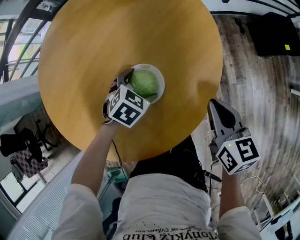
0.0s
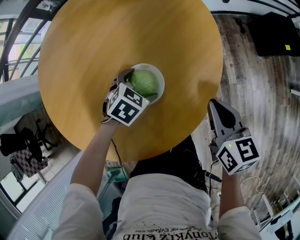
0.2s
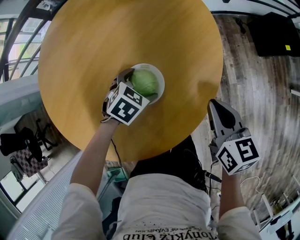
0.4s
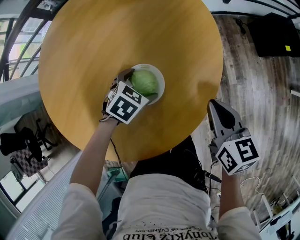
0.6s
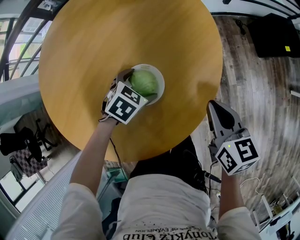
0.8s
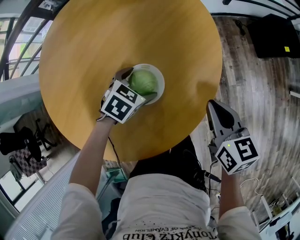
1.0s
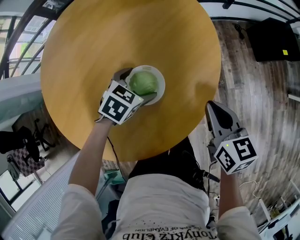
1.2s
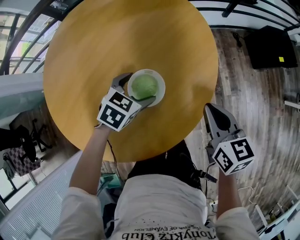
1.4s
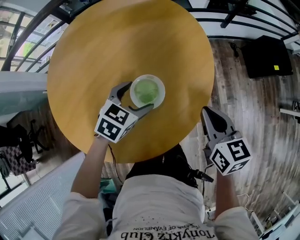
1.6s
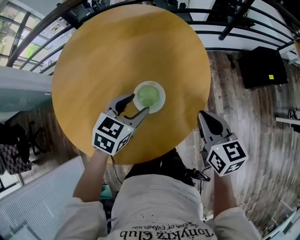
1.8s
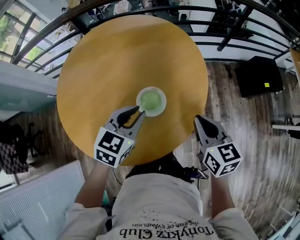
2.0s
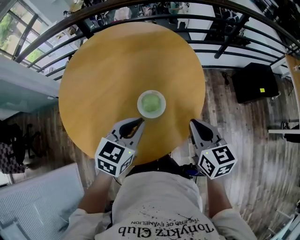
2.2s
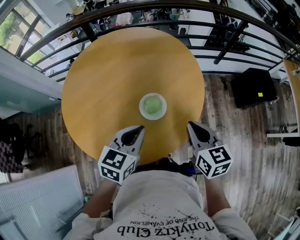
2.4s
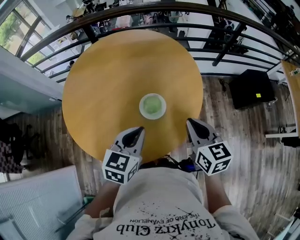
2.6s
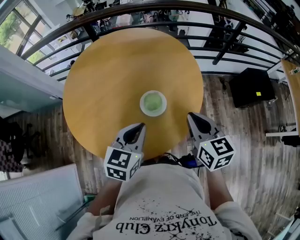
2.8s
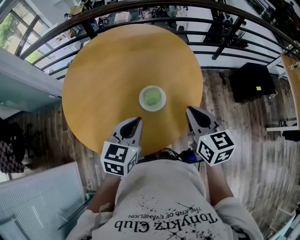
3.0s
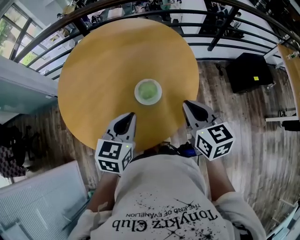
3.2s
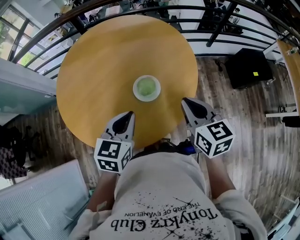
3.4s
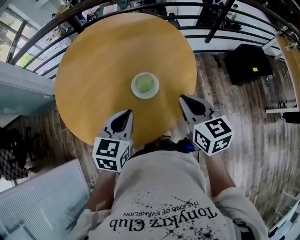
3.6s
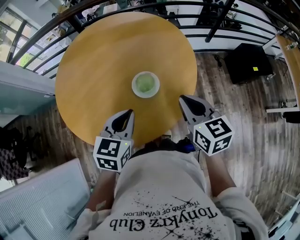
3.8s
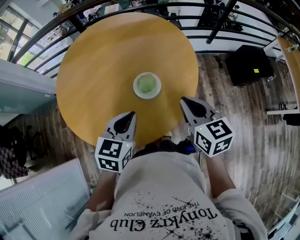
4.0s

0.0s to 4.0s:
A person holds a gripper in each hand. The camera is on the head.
0.0s to 1.4s: The left gripper travels upward by approximately 5 cm.
1.4s to 2.6s: The right gripper heads upward, backward and to the left, covering about 15 cm; the left gripper heads upward and backward, covering some 25 cm, rotates some 40 degrees, and closes.
2.6s to 4.0s: The grippers move only a little.

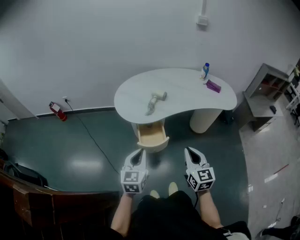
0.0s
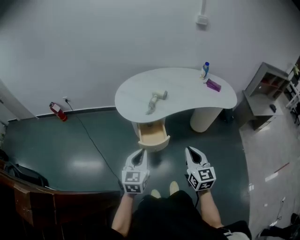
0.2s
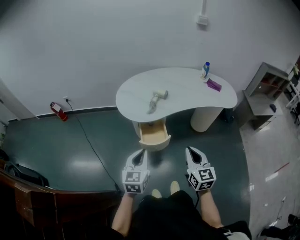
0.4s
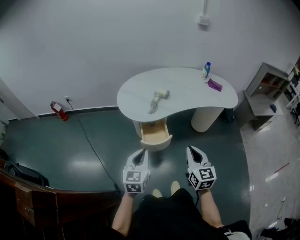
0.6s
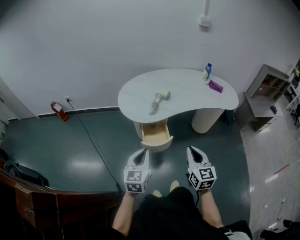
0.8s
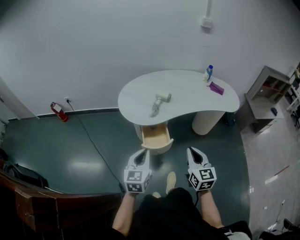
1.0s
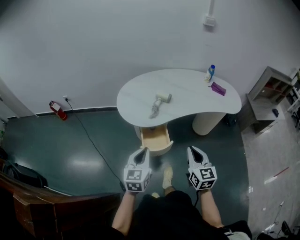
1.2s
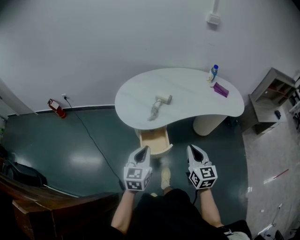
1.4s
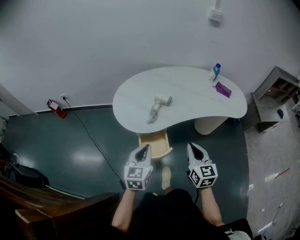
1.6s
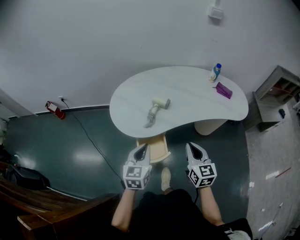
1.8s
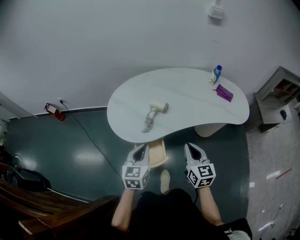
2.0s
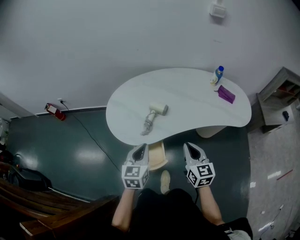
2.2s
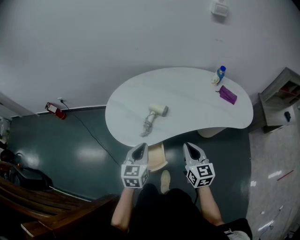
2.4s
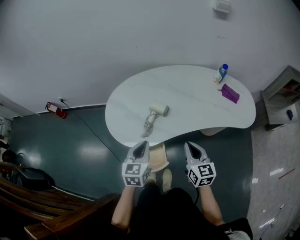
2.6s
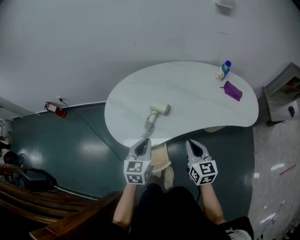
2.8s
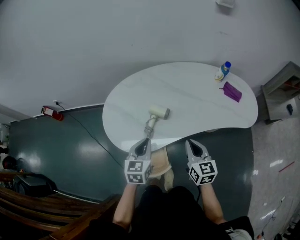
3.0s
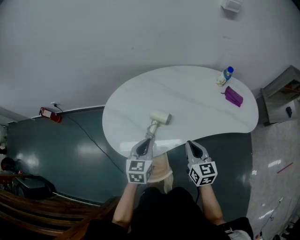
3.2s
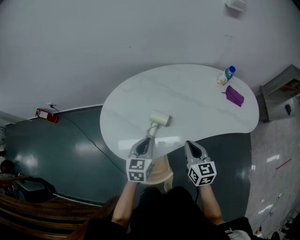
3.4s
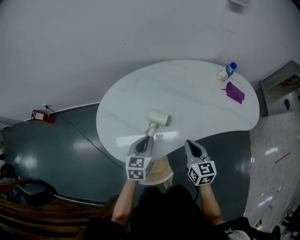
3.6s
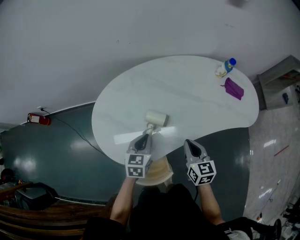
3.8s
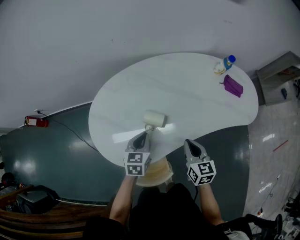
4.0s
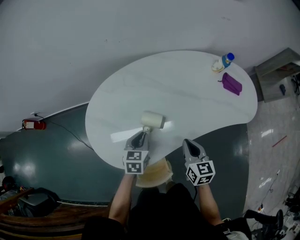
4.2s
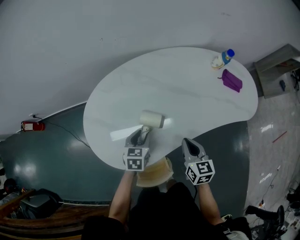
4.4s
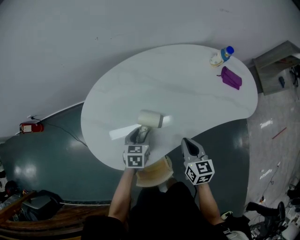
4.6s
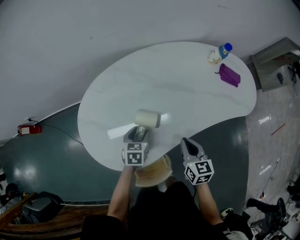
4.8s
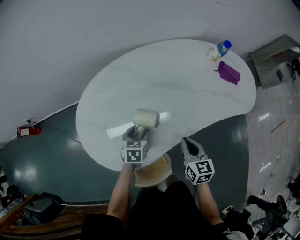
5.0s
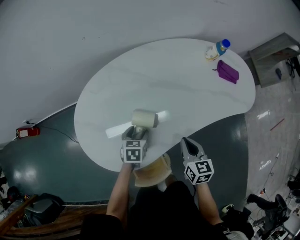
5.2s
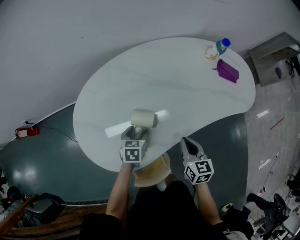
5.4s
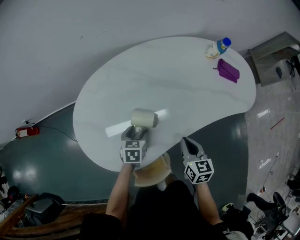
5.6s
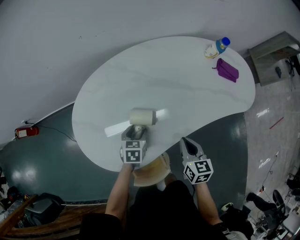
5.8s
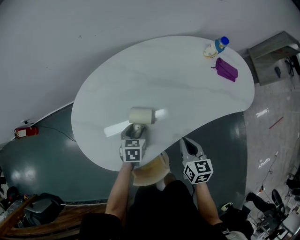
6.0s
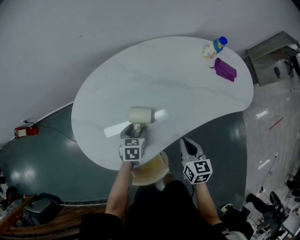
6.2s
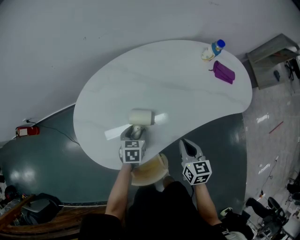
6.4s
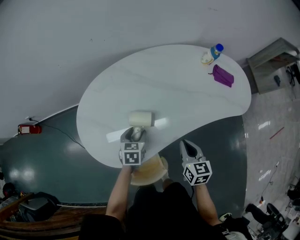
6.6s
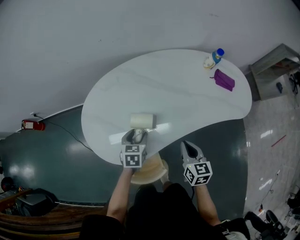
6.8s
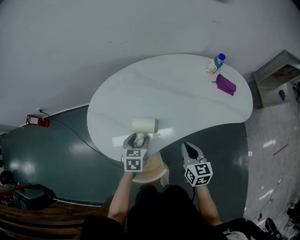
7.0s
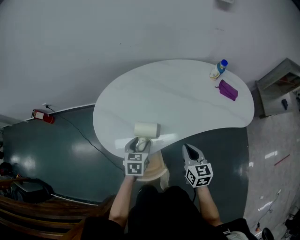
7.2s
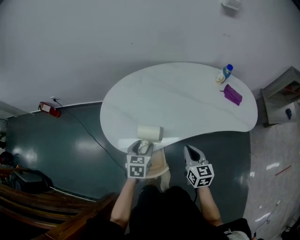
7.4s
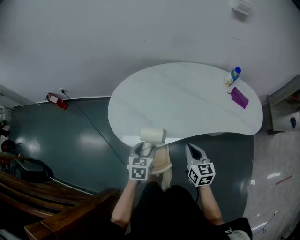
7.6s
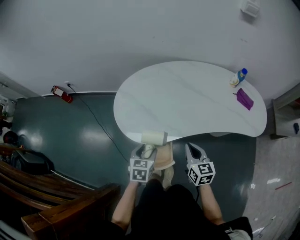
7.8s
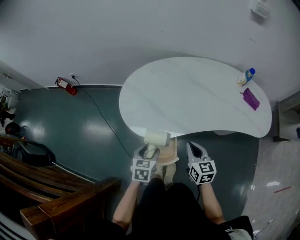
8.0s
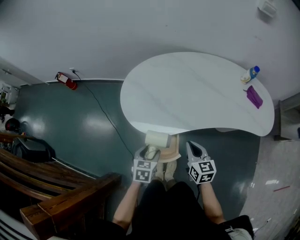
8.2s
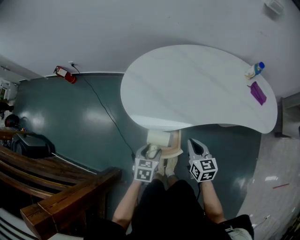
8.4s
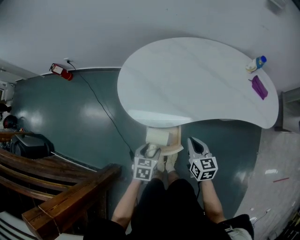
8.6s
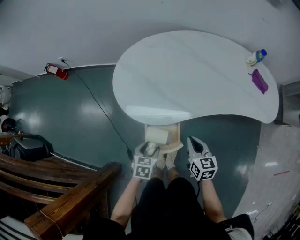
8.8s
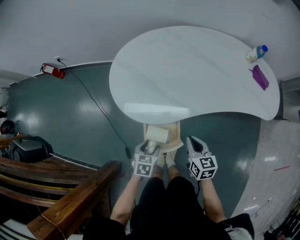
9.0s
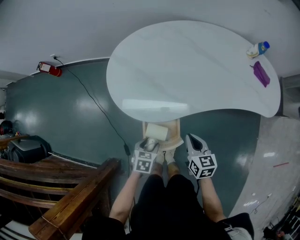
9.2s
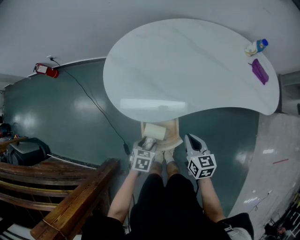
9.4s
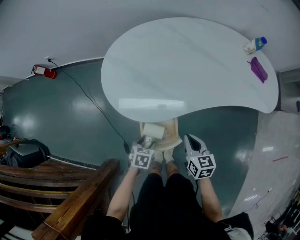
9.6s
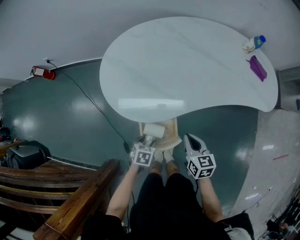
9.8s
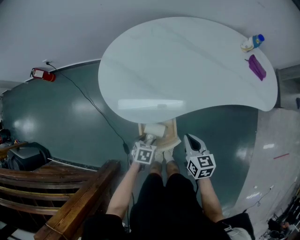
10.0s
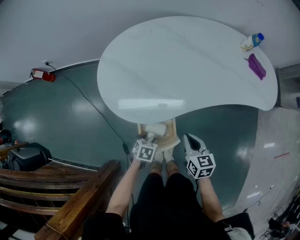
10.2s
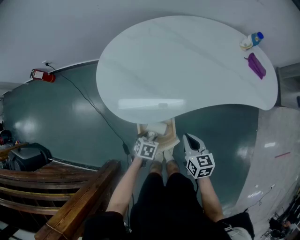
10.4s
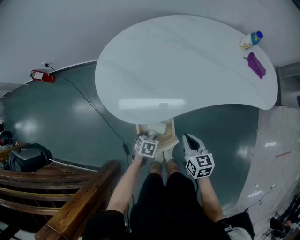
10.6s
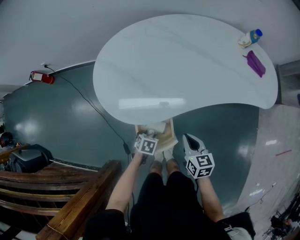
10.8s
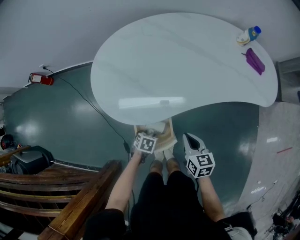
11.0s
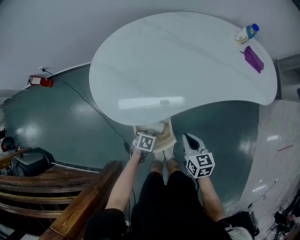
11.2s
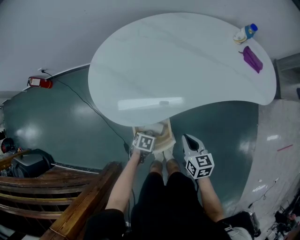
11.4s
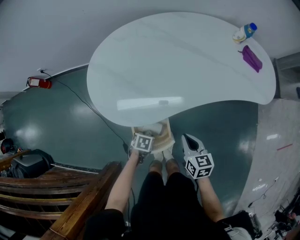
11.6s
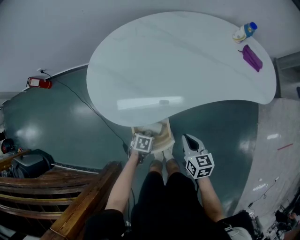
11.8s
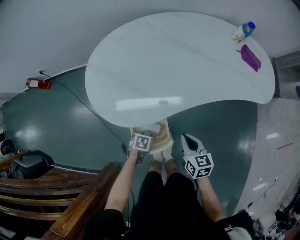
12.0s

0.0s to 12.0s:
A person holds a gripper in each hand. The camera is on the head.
0.0s to 1.6s: Both grippers move forward, some 15 cm.
1.6s to 3.0s: Both grippers move forward, roughly 20 cm.
3.0s to 4.4s: The left gripper goes about 20 cm downward and forward, swivels roughly 20 degrees, and opens up, while the right gripper heads forward and downward, covering approximately 15 cm.
4.4s to 6.0s: The left gripper moves downward, approximately 5 cm.
6.0s to 7.6s: The left gripper heads backward and upward, covering some 25 cm; the right gripper goes approximately 15 cm backward and upward, and swivels about 20 degrees.
7.6s to 9.0s: The right gripper shifts approximately 10 cm downward and to the left. Meanwhile the left gripper is displaced downward and backward by approximately 20 cm.
9.0s to 10.4s: The left gripper moves downward, some 10 cm.
10.4s to 12.0s: The grippers stay close to where they were, moving slightly.

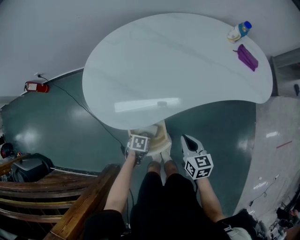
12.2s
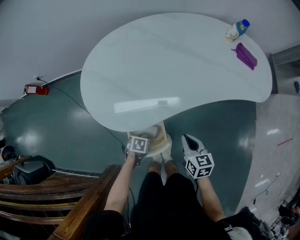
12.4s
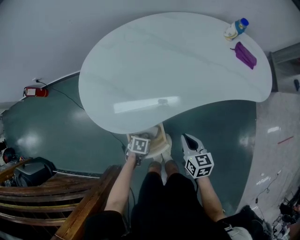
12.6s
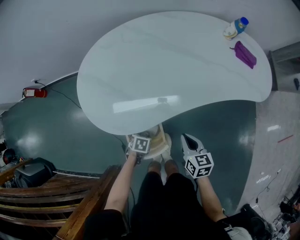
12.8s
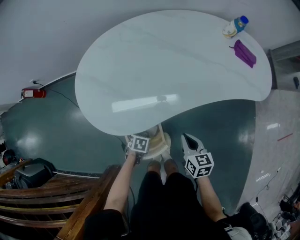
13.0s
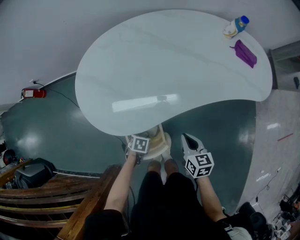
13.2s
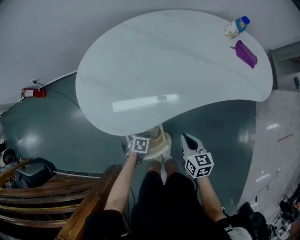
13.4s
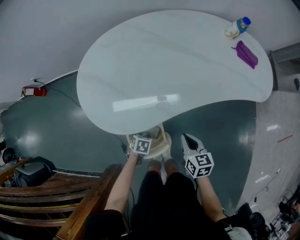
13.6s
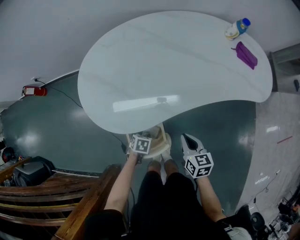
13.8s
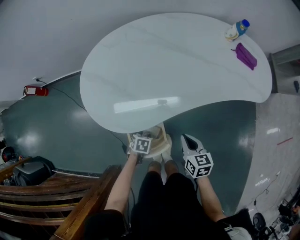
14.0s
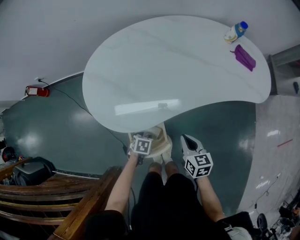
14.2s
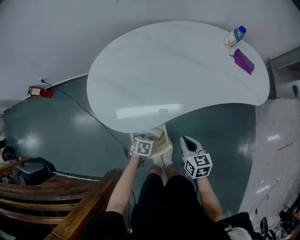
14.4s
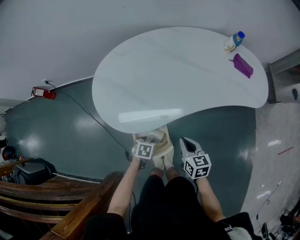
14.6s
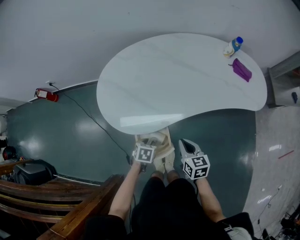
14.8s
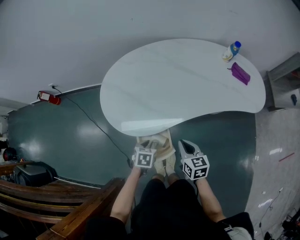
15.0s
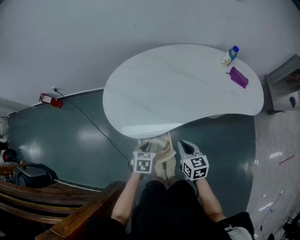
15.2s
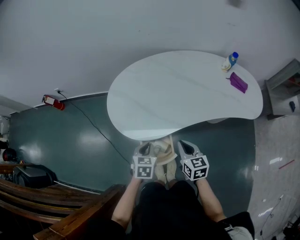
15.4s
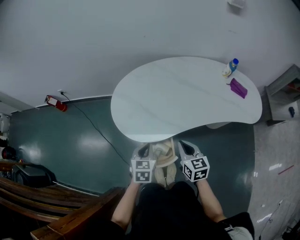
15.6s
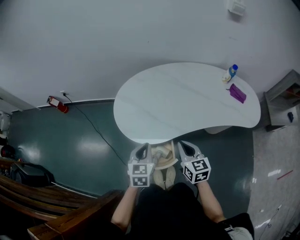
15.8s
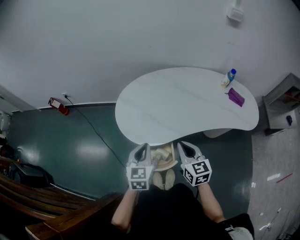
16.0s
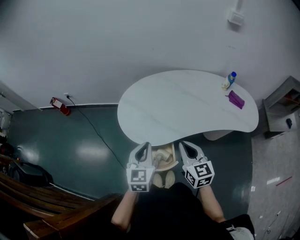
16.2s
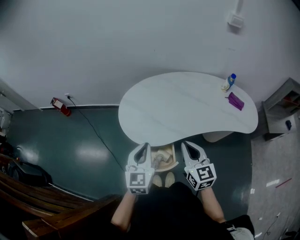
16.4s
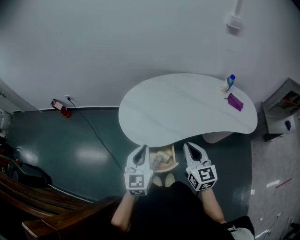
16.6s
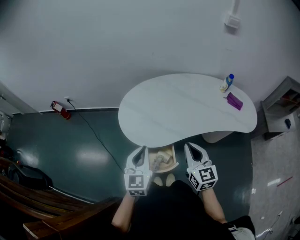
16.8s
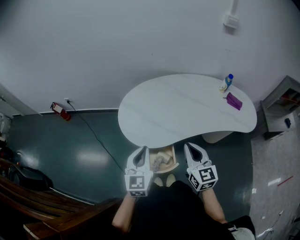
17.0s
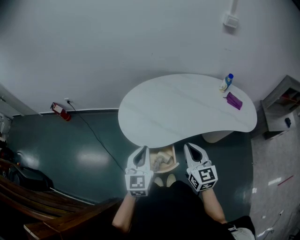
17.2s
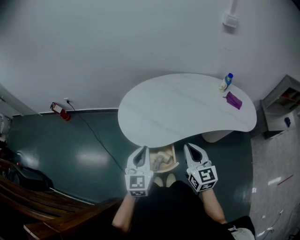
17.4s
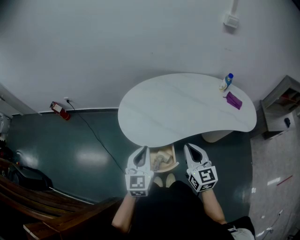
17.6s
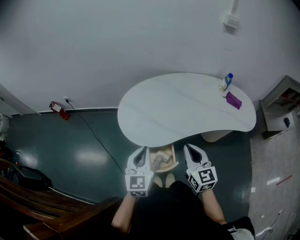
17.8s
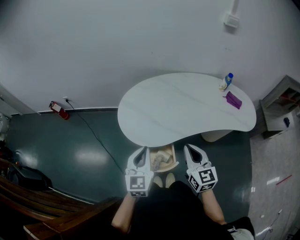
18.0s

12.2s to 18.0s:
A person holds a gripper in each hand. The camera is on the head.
12.2s to 13.6s: The left gripper shifts by about 5 cm.
13.6s to 15.0s: The left gripper shifts roughly 15 cm upward. Meanwhile the right gripper heads upward, covering about 5 cm.
15.0s to 16.6s: The two grippers go approximately 25 cm upward. The left gripper tips its fingers upward by roughly 50 degrees. Meanwhile the right gripper changes its angle by about 30 degrees.
16.6s to 18.0s: Both grippers stay put.

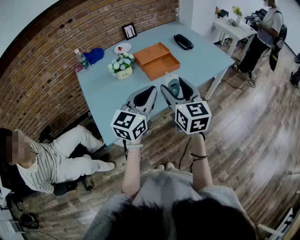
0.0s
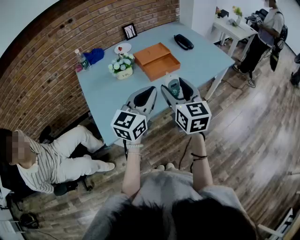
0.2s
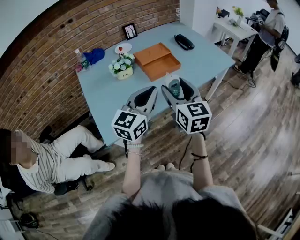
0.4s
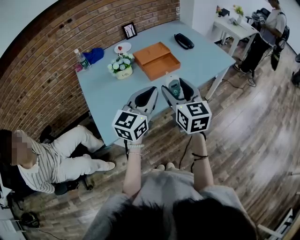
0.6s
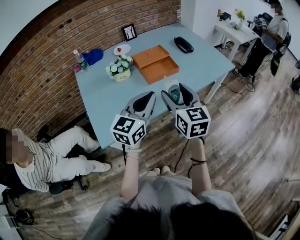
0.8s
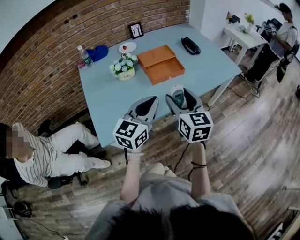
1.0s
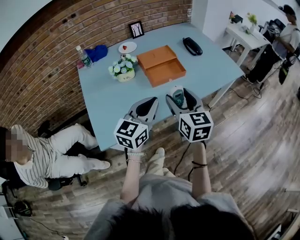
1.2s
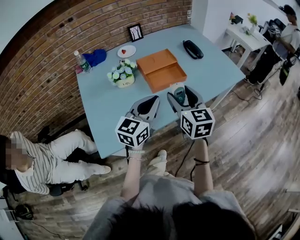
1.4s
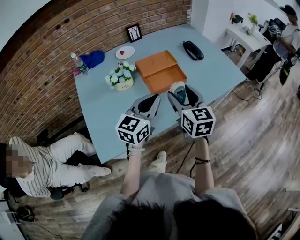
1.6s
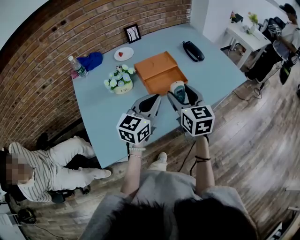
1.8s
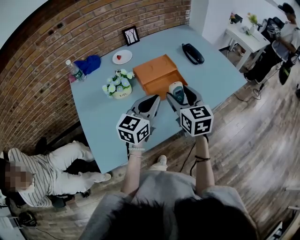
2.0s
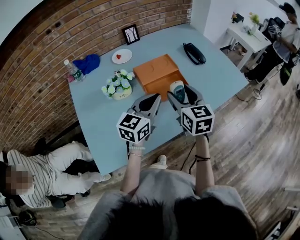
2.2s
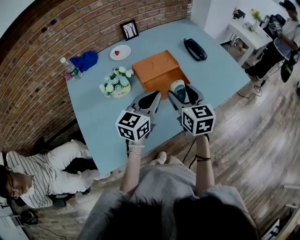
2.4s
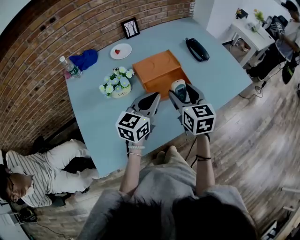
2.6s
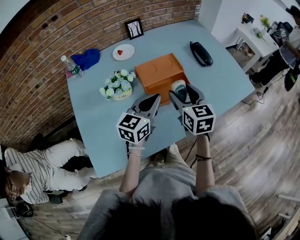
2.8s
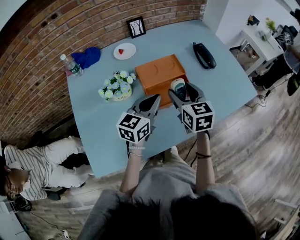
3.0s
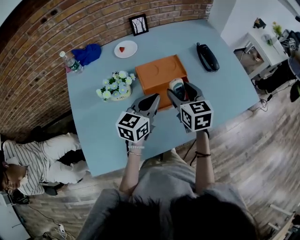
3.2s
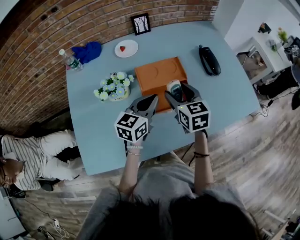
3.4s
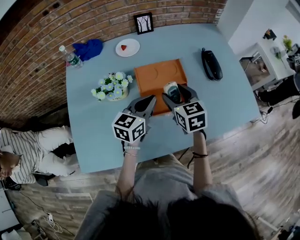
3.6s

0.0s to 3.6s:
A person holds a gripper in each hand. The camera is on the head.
0.0s to 1.8s: Both grippers travel together forward, about 20 cm.
1.8s to 3.6s: The two grippers go roughly 20 cm forward and downward. The right gripper rotates approximately 20 degrees.
